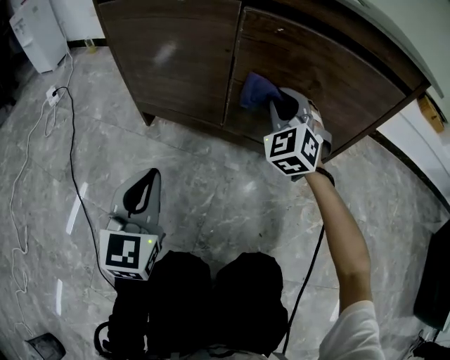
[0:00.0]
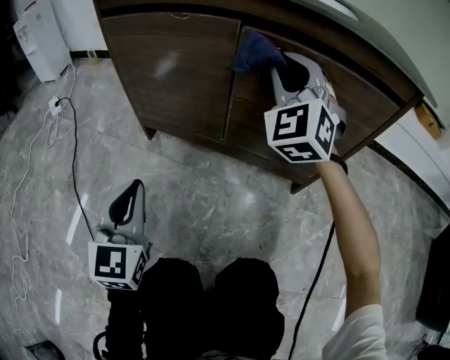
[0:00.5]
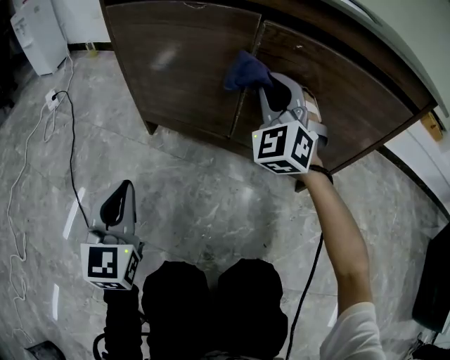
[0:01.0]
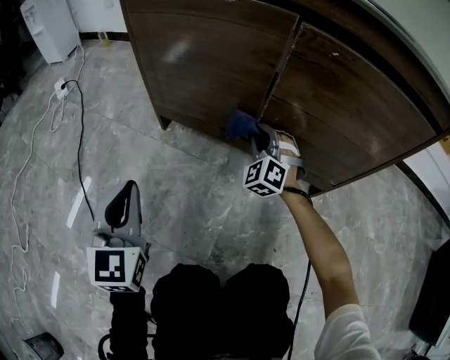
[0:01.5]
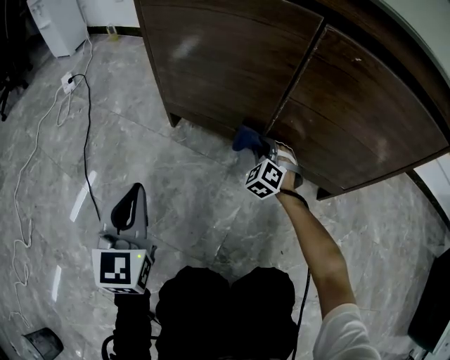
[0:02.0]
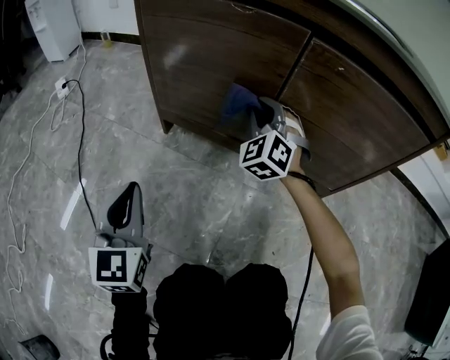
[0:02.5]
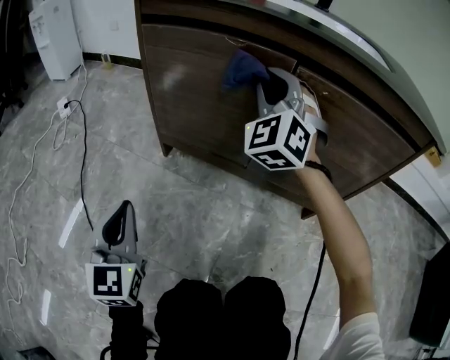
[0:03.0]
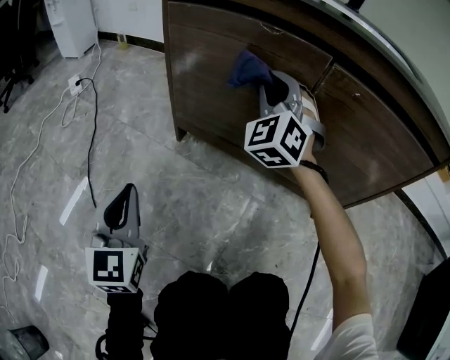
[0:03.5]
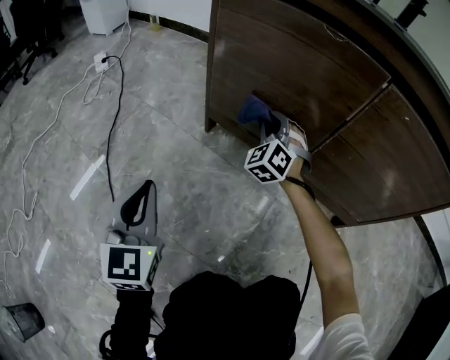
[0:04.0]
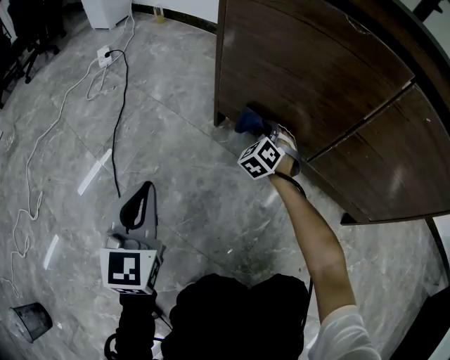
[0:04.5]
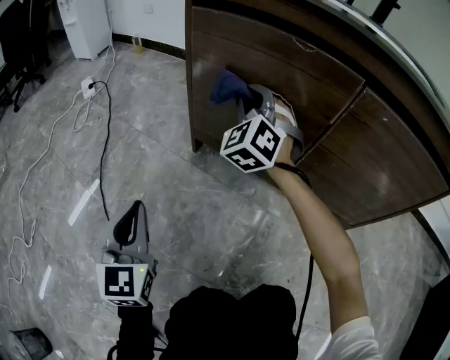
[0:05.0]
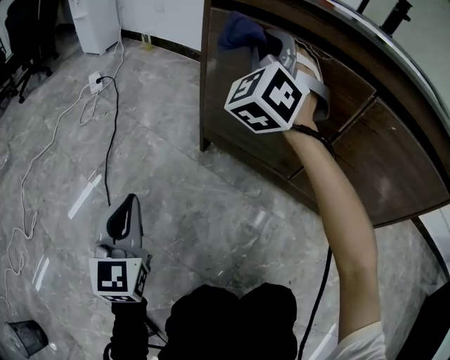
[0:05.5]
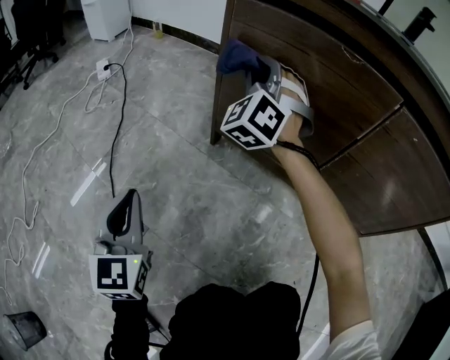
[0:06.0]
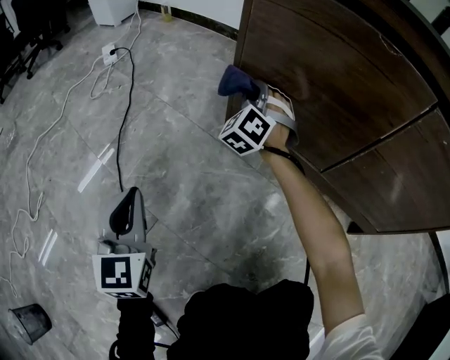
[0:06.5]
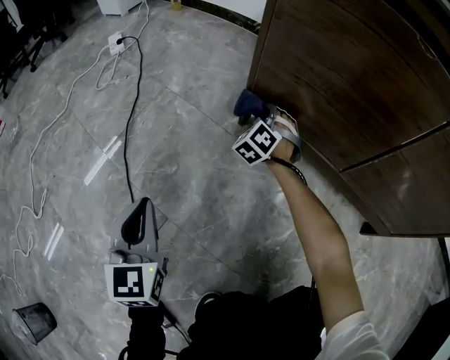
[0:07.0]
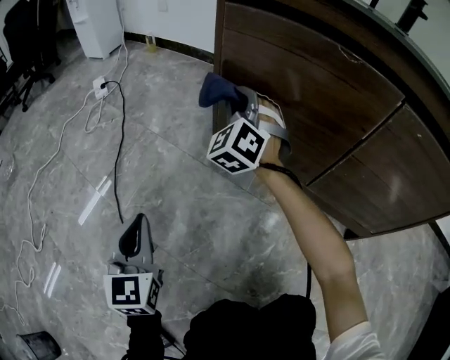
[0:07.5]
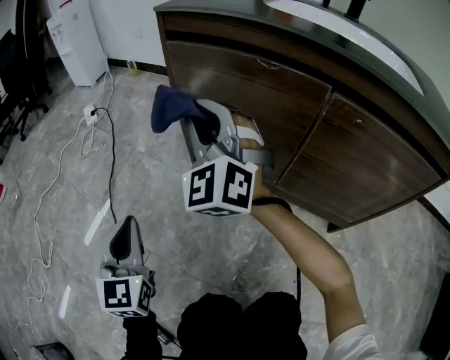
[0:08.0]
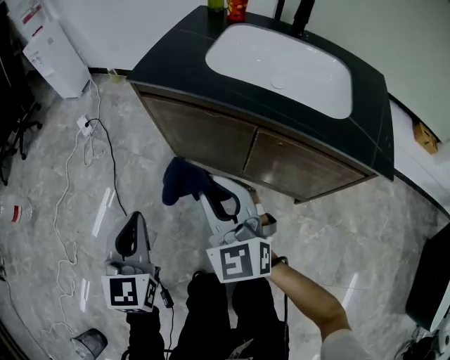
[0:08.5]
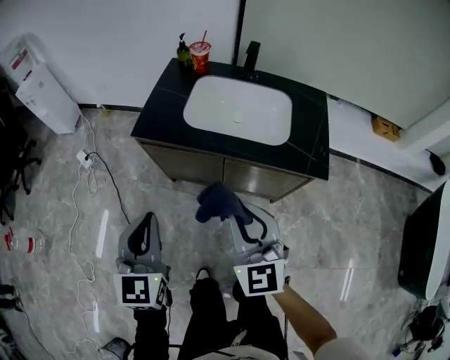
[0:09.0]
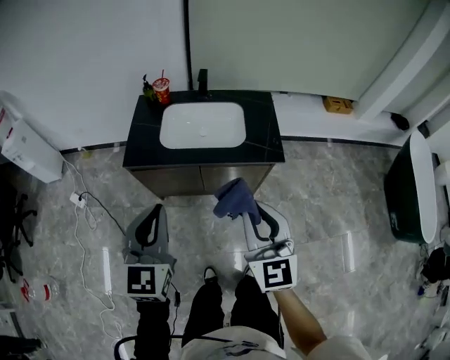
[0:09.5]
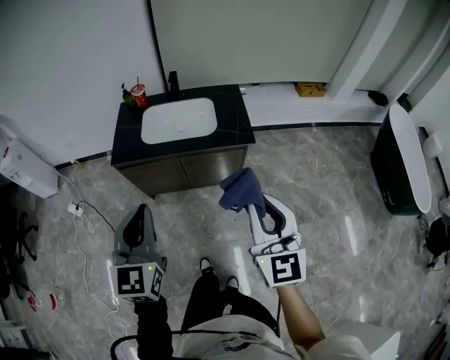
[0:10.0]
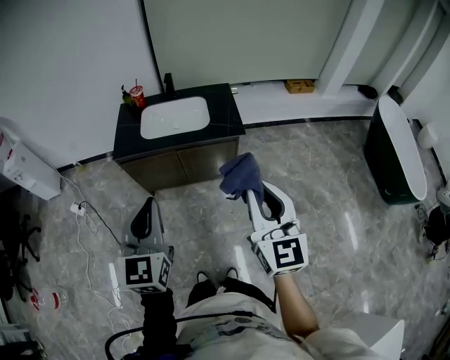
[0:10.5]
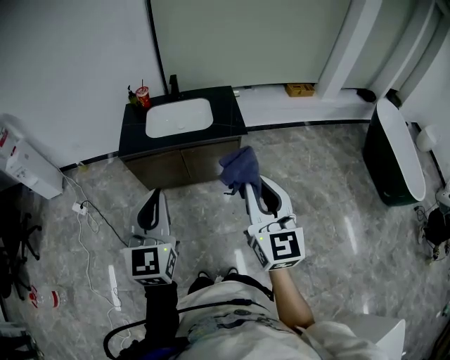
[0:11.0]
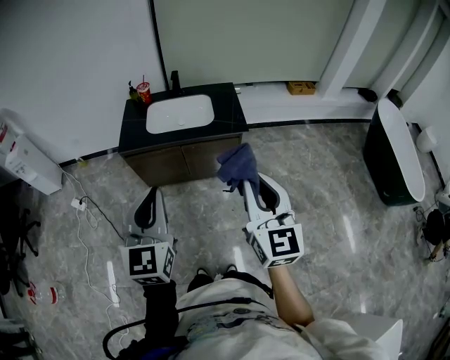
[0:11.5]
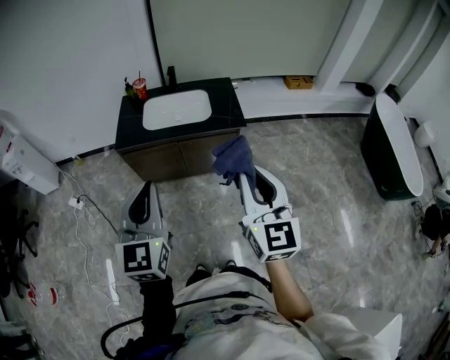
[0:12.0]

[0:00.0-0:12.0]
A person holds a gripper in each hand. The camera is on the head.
0:00.0 to 0:02.0: The left gripper moves to the left, some 15 cm. The right gripper travels downward by roughly 25 cm, and changes its angle by about 20 degrees.
0:02.0 to 0:04.0: The right gripper moves to the left and forward, about 15 cm, and travels upward and back again, approximately 40 cm each way; the left gripper moves to the left, roughly 10 cm.
0:04.0 to 0:06.0: The left gripper shifts some 5 cm to the left; the right gripper swings up and down, roughly 40 cm each way, with 2 reversals.
0:06.0 to 0:08.0: The right gripper travels backward by roughly 10 cm, moves some 30 cm downward and comes back, and turns by about 20 degrees; the left gripper is displaced upward and to the right by about 10 cm.
0:08.0 to 0:10.0: Both grippers travel together upward, approximately 60 cm. The left gripper rotates roughly 40 degrees. The right gripper swivels roughly 60 degrees.
0:10.0 to 0:12.0: The right gripper heads backward and upward, covering approximately 10 cm. The left gripper goes approximately 10 cm backward.

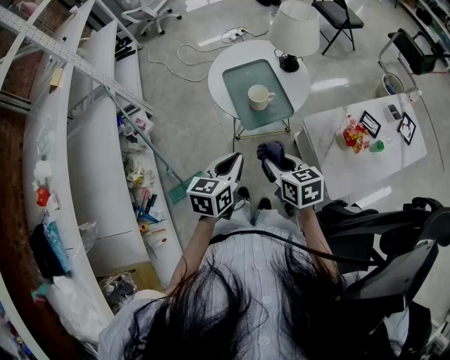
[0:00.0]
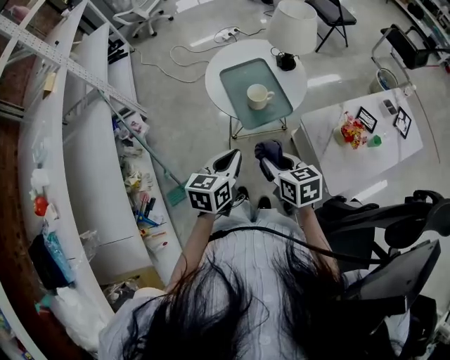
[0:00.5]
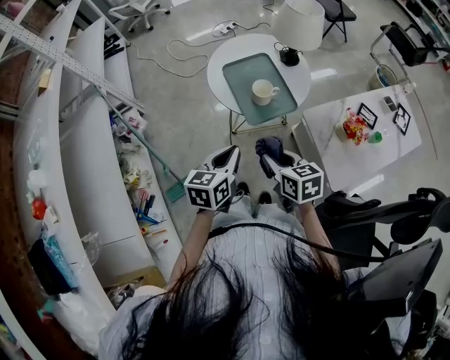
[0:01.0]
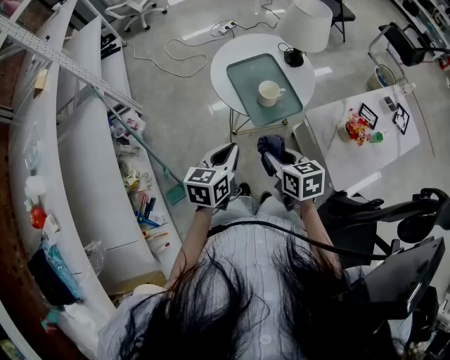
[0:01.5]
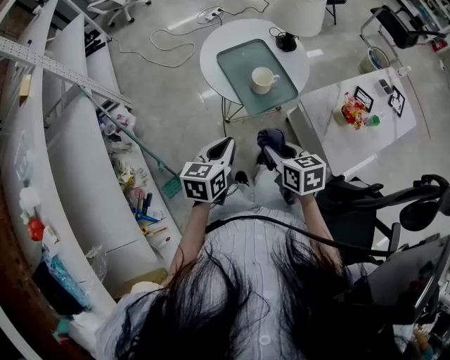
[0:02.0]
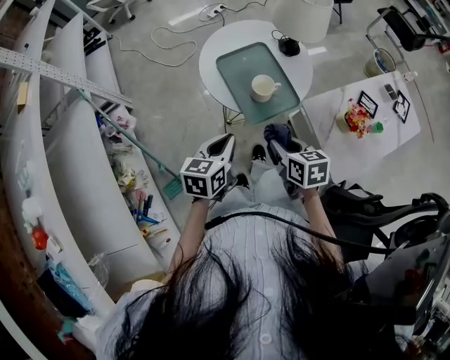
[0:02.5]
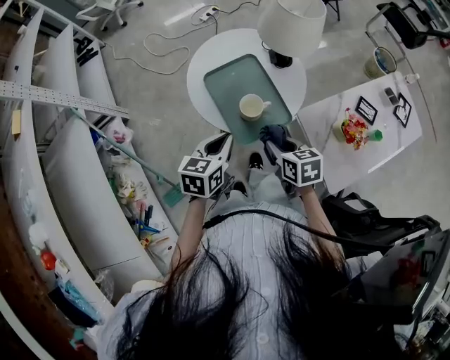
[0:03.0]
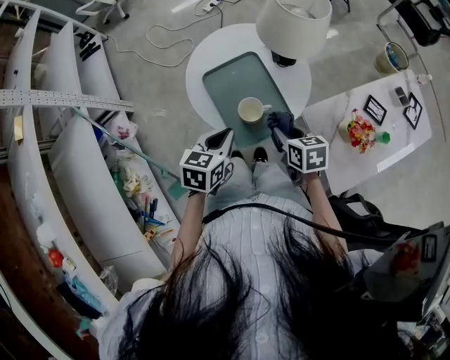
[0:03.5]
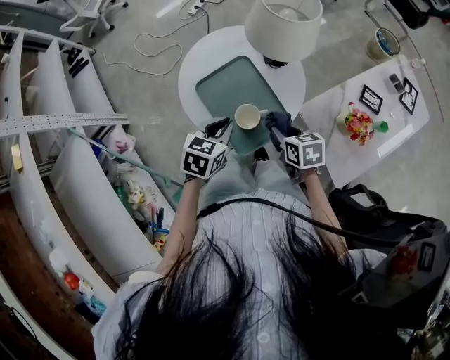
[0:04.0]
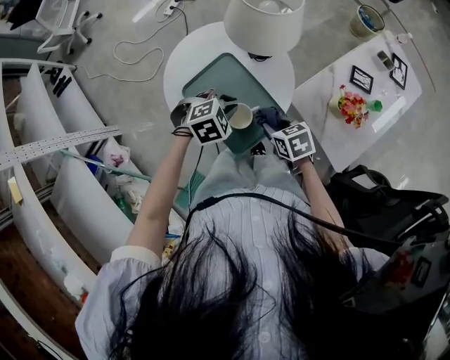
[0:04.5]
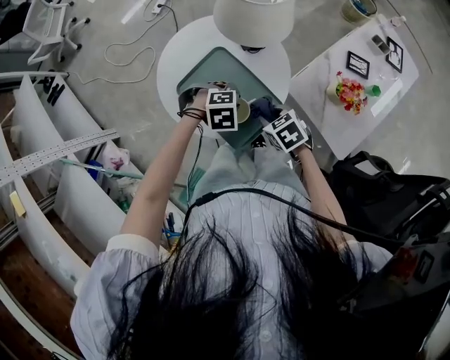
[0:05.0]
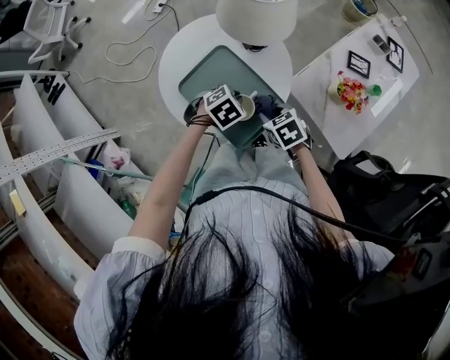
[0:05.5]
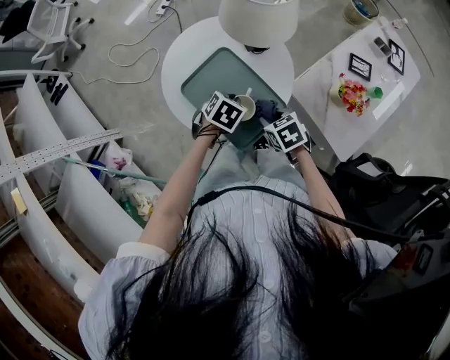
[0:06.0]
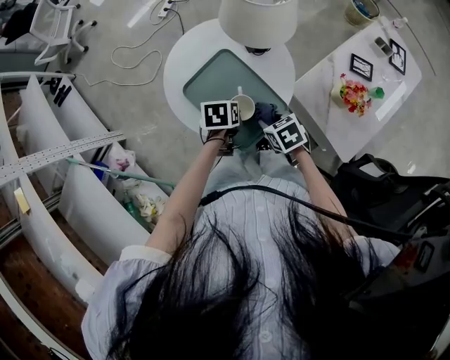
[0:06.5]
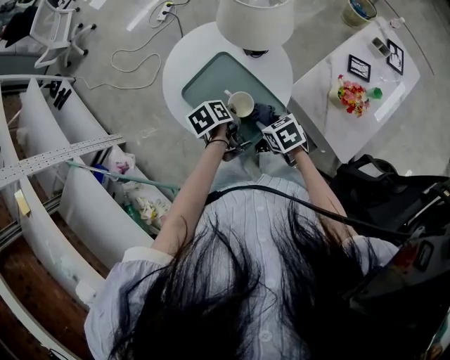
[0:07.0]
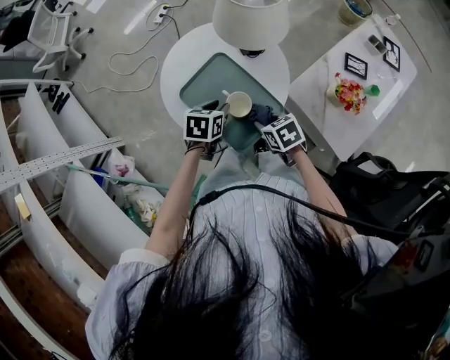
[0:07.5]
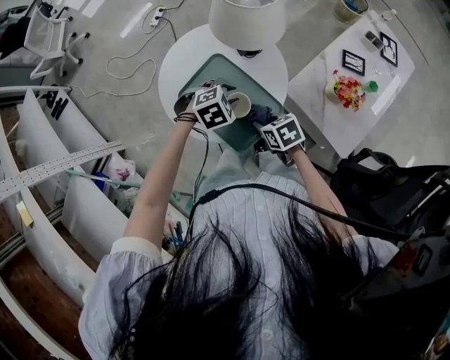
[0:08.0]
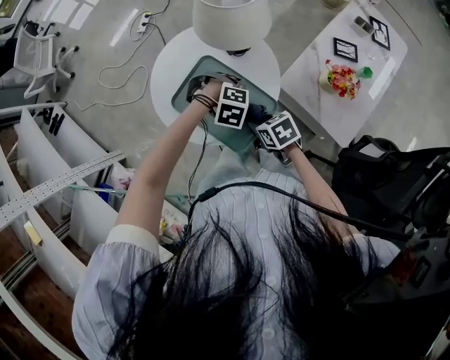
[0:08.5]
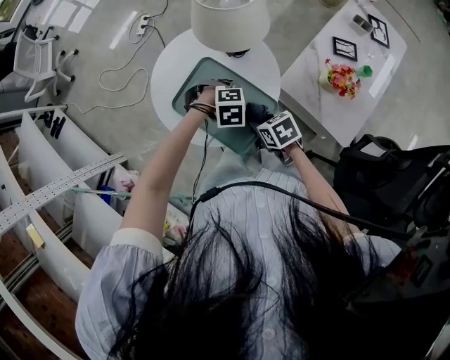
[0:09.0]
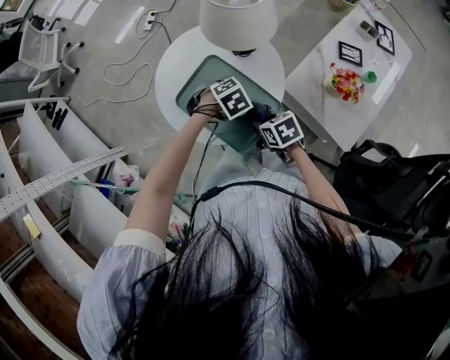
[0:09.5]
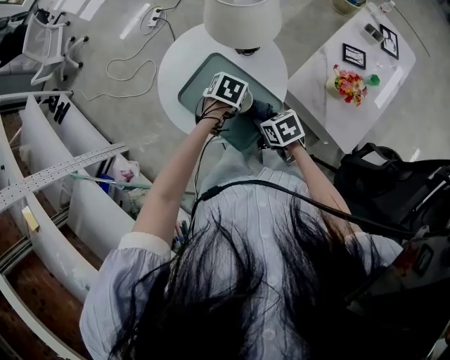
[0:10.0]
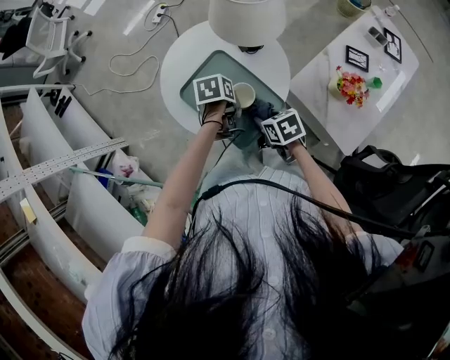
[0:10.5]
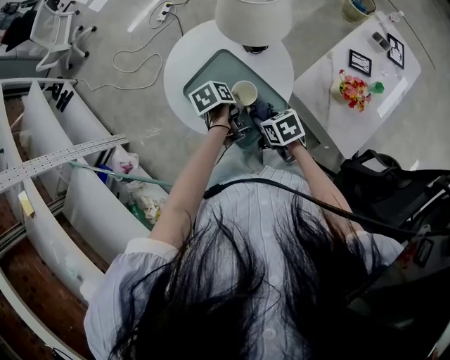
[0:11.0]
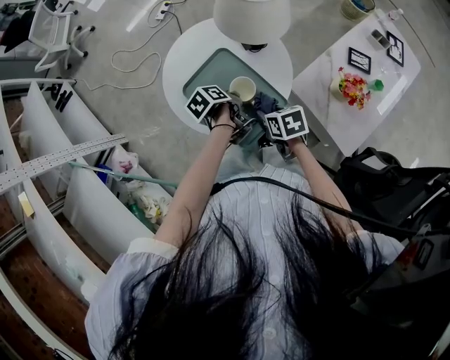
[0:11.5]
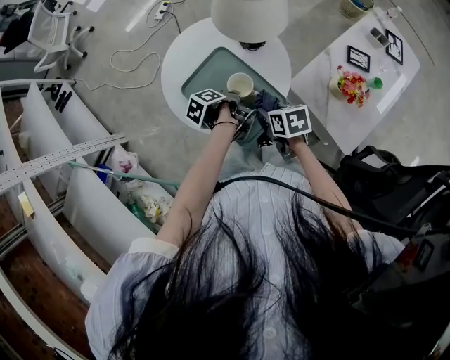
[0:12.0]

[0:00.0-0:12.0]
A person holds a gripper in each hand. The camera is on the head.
0:00.0 to 0:02.0: The grippers both shift to the left by roughly 5 cm.
0:02.0 to 0:04.0: The left gripper heads forward, covering roughly 25 cm, and changes its angle by about 30 degrees. The right gripper moves forward and to the right, some 25 cm.
0:04.0 to 0:06.0: The right gripper moves downward, roughly 5 cm; the left gripper is displaced downward by approximately 10 cm, and swivels approximately 30 degrees.
0:06.0 to 0:08.0: The left gripper rotates around the line of its fingers by about 40 degrees, clockwise from behind.
0:08.0 to 0:10.0: The left gripper rolls counterclockwise, seen from behind, by some 50 degrees.
0:10.0 to 0:12.0: The left gripper rotates around the line of its fingers by about 100 degrees, counterclockwise from behind.

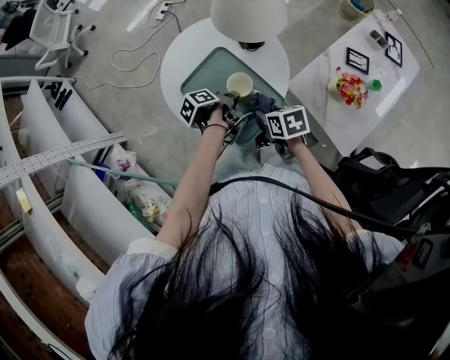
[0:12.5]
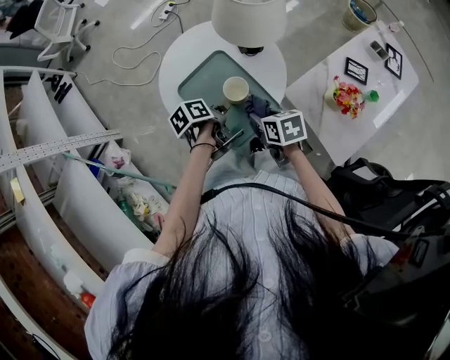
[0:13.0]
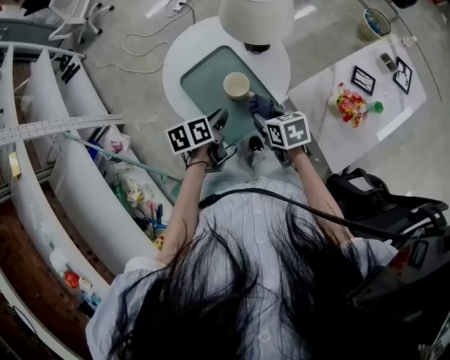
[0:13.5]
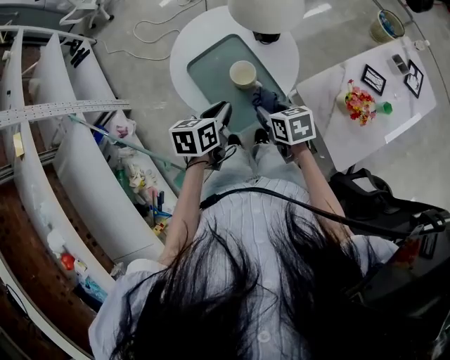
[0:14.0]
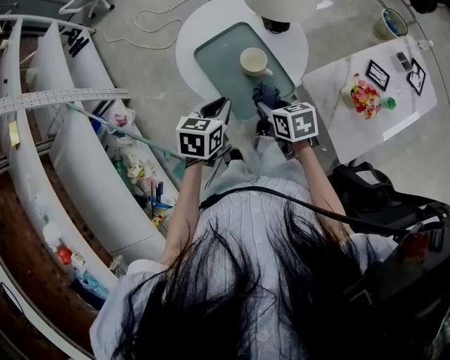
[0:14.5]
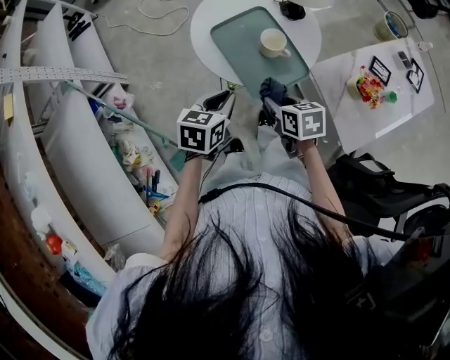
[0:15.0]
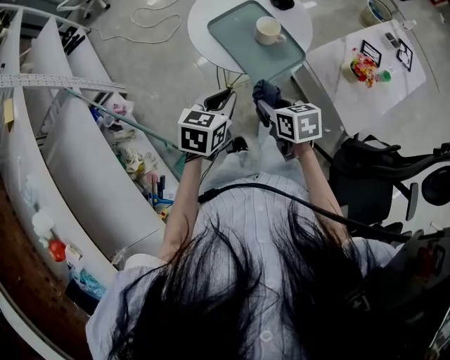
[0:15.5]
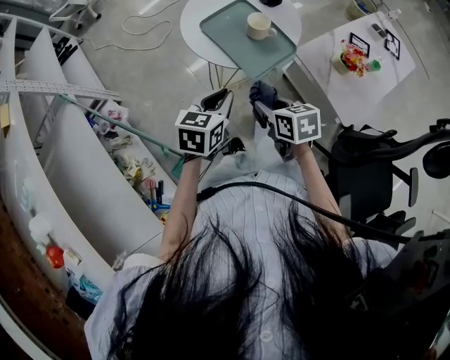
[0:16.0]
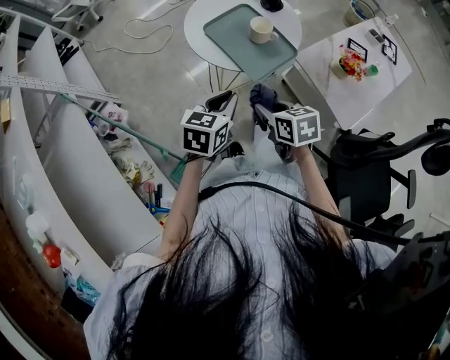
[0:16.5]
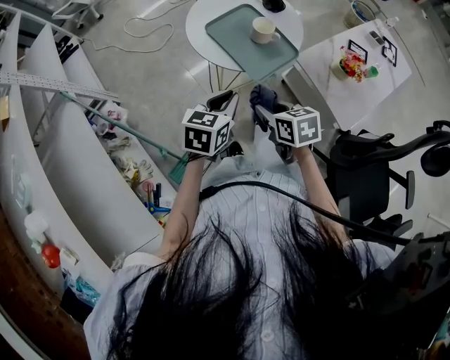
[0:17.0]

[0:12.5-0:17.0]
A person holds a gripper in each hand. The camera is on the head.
0:12.5 to 0:14.5: The left gripper shifts approximately 15 cm backward, upward and to the left, and rolls clockwise, seen from behind, by about 70 degrees, while the right gripper shifts by some 5 cm.
0:14.5 to 0:17.0: The two grippers go approximately 20 cm backward and to the left.
